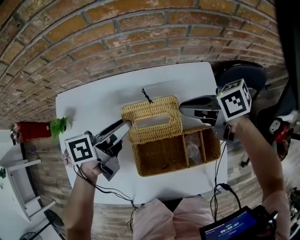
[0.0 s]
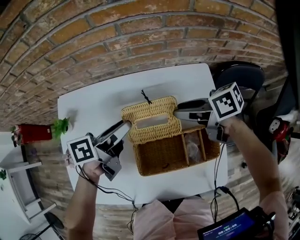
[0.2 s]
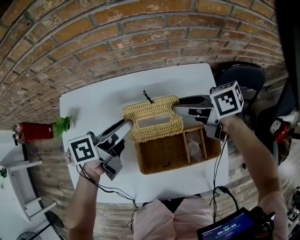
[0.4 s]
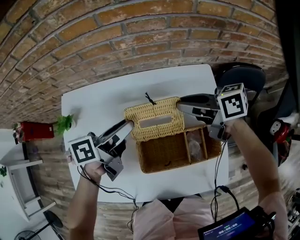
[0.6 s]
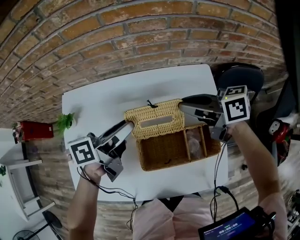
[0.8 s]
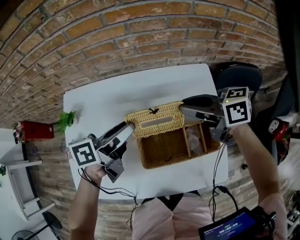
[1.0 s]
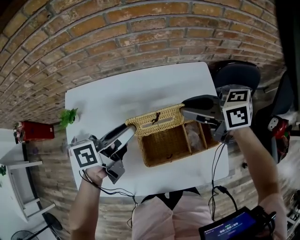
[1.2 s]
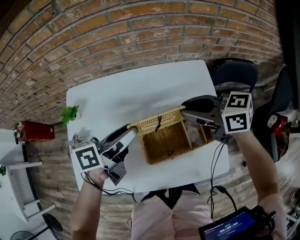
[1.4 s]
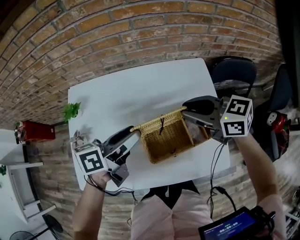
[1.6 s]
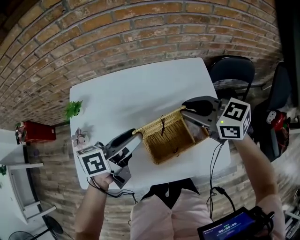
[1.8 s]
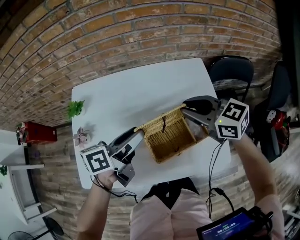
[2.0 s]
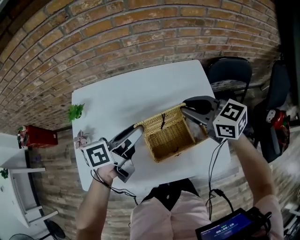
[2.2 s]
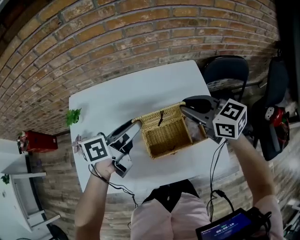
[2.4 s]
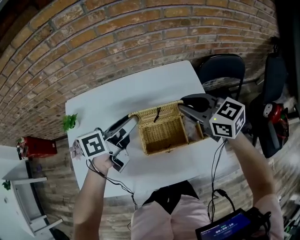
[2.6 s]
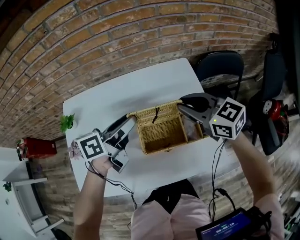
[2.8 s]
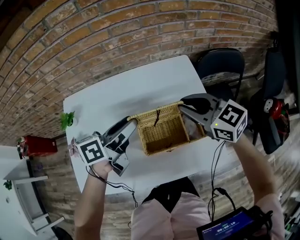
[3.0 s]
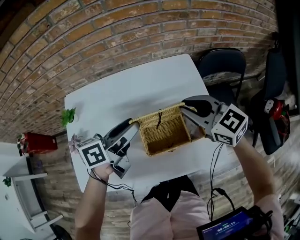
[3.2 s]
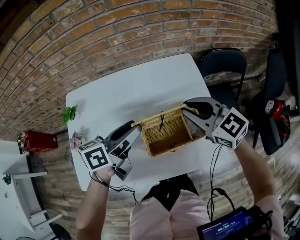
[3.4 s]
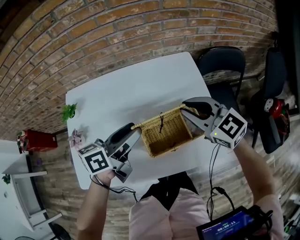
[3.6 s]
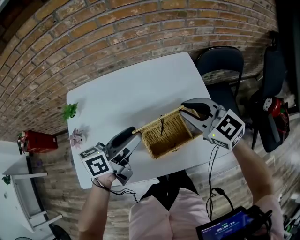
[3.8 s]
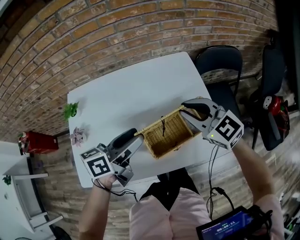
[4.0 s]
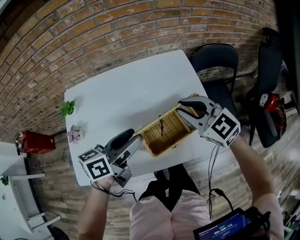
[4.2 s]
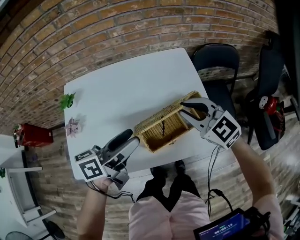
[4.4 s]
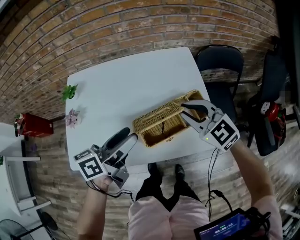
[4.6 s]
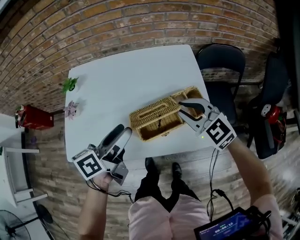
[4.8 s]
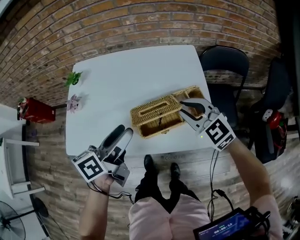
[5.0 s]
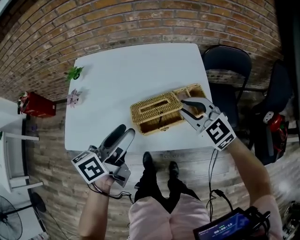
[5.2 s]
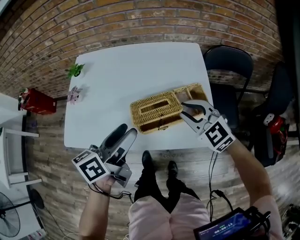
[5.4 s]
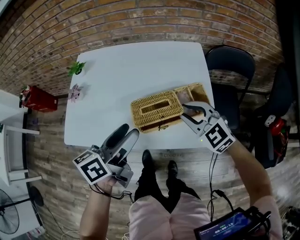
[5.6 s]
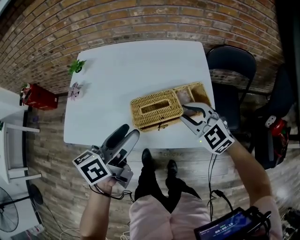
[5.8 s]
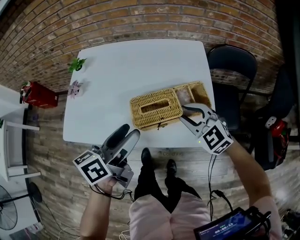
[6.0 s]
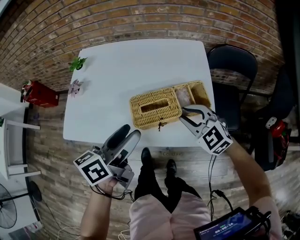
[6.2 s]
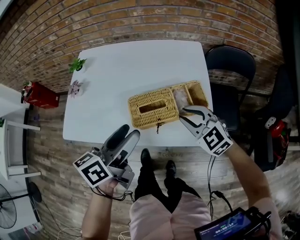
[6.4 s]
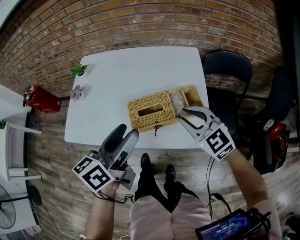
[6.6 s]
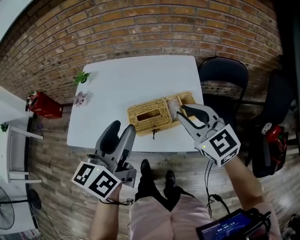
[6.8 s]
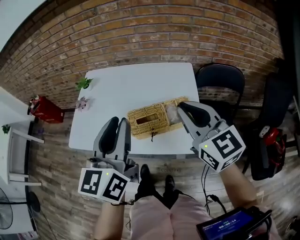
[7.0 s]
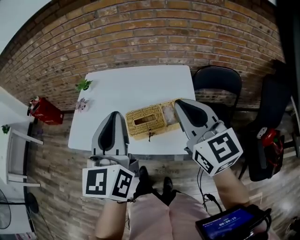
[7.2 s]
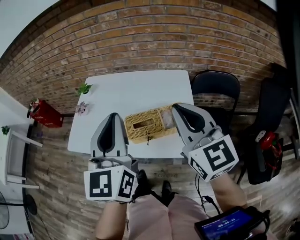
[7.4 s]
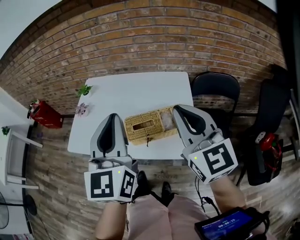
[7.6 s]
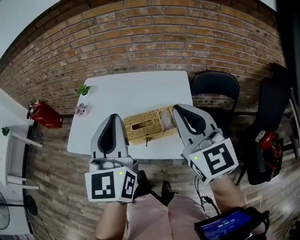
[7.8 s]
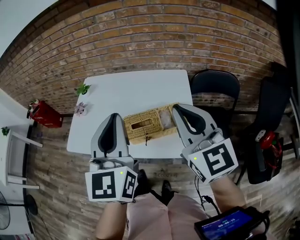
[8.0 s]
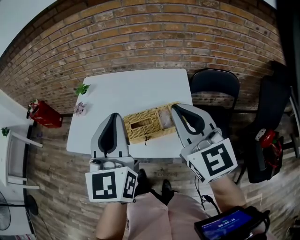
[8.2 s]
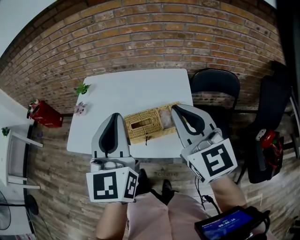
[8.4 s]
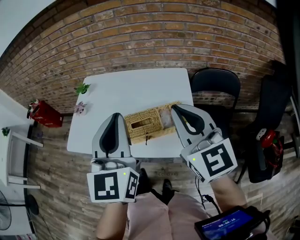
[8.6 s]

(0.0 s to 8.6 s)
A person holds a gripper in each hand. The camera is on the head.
0.0 s - 1.4 s: The right gripper moves about 10 cm, rotates approximately 30 degrees, and opens, then closes once more. The left gripper ends up approximately 10 cm from where it was.
1.4 s - 2.8 s: The right gripper ends up roughly 5 cm from where it was, and changes its angle by approximately 30 degrees.
2.8 s - 4.4 s: Both grippers travel together backward, approximately 15 cm. The right gripper swivels roughly 20 degrees.
4.4 s - 5.8 s: The left gripper heads backward, covering approximately 5 cm, and swivels approximately 20 degrees. Meanwhile the right gripper shifts approximately 10 cm downward and backward.
5.8 s - 7.2 s: The grippers both shift upward by roughly 20 cm. The right gripper rotates some 40 degrees, and closes its fingers. The left gripper changes its angle by about 50 degrees, and closes.
7.2 s - 8.6 s: The grippers move only a little.

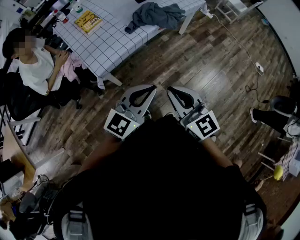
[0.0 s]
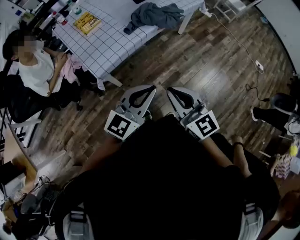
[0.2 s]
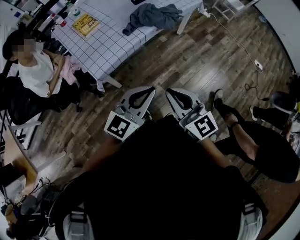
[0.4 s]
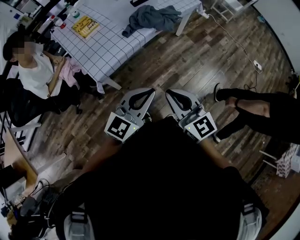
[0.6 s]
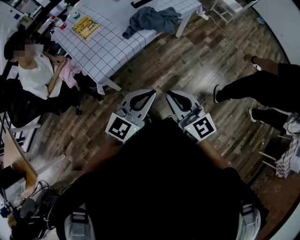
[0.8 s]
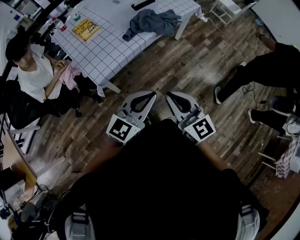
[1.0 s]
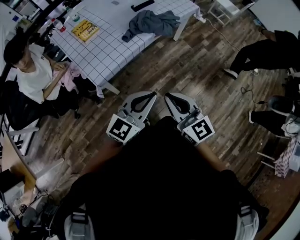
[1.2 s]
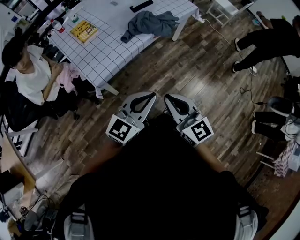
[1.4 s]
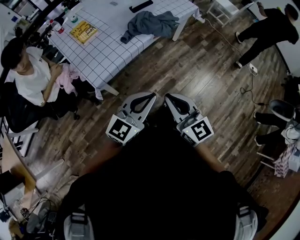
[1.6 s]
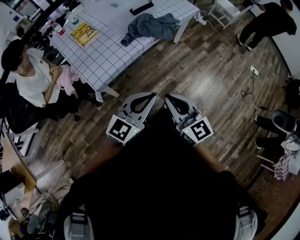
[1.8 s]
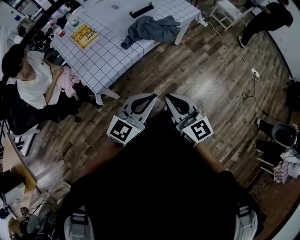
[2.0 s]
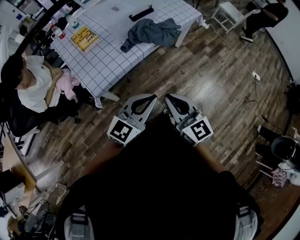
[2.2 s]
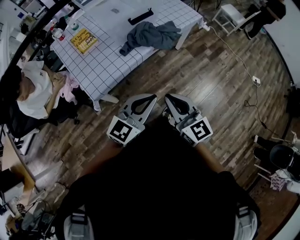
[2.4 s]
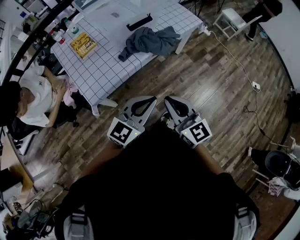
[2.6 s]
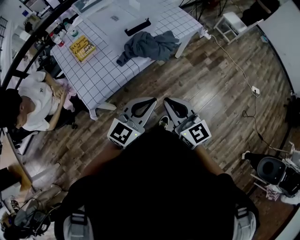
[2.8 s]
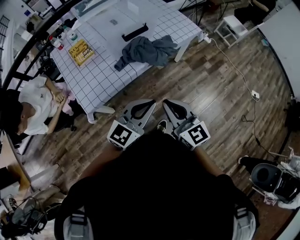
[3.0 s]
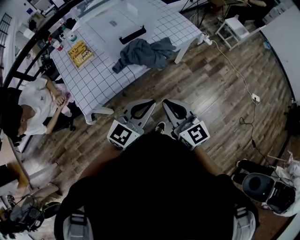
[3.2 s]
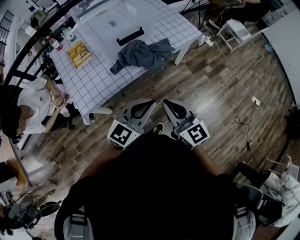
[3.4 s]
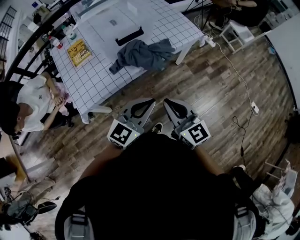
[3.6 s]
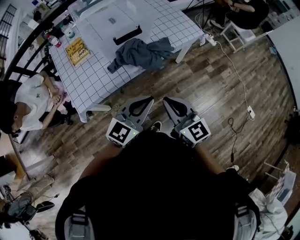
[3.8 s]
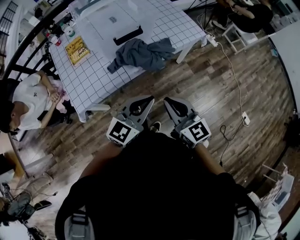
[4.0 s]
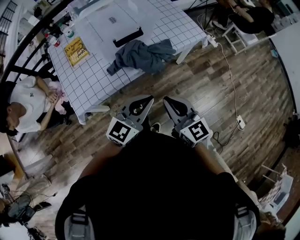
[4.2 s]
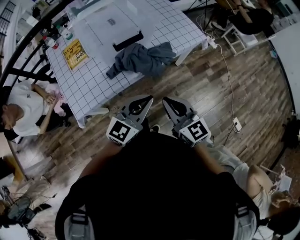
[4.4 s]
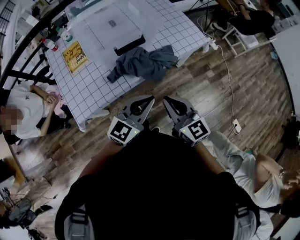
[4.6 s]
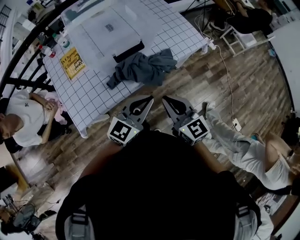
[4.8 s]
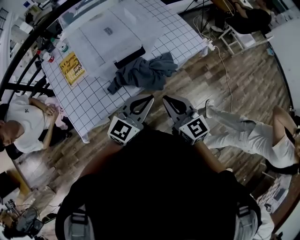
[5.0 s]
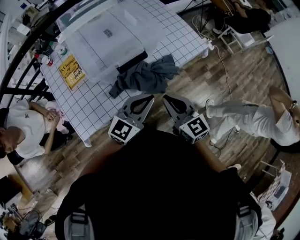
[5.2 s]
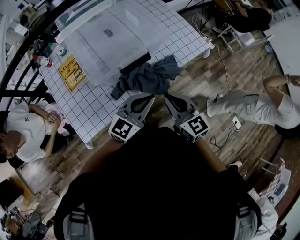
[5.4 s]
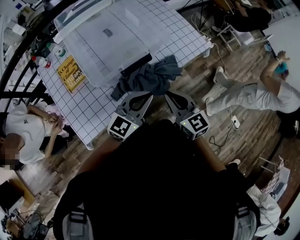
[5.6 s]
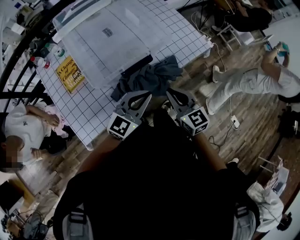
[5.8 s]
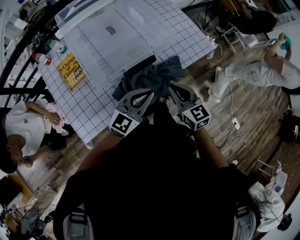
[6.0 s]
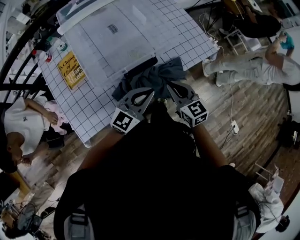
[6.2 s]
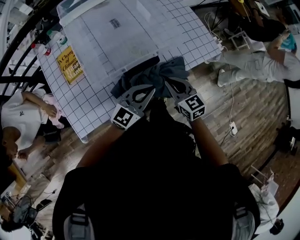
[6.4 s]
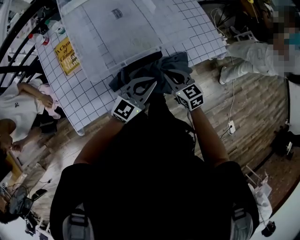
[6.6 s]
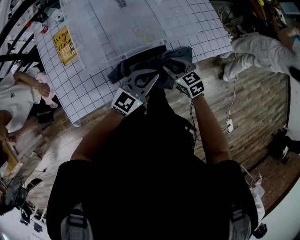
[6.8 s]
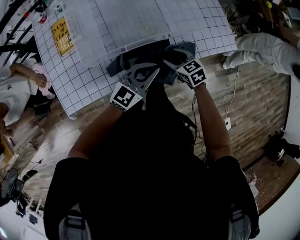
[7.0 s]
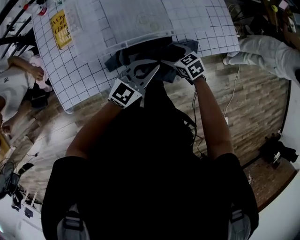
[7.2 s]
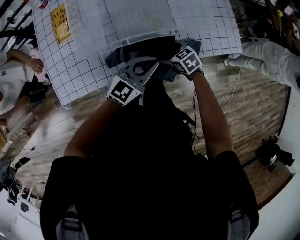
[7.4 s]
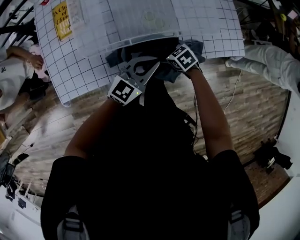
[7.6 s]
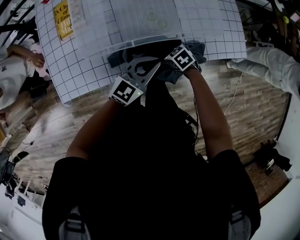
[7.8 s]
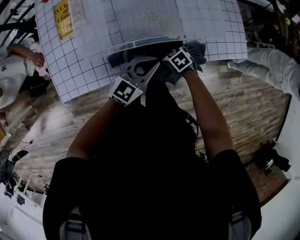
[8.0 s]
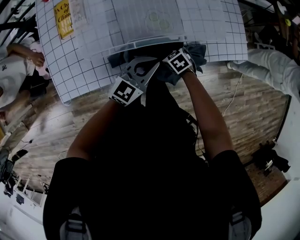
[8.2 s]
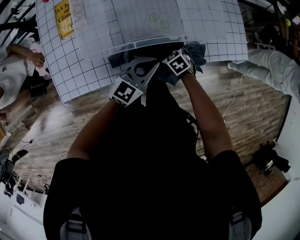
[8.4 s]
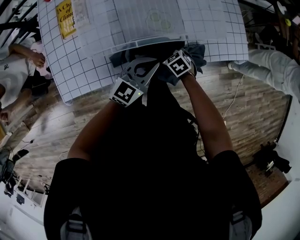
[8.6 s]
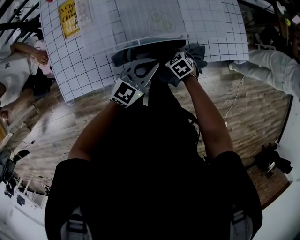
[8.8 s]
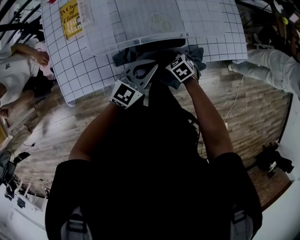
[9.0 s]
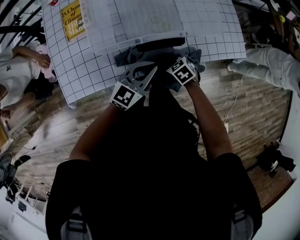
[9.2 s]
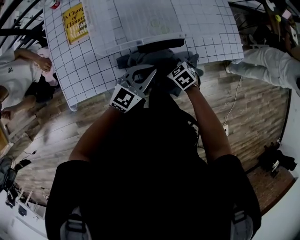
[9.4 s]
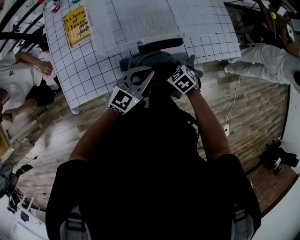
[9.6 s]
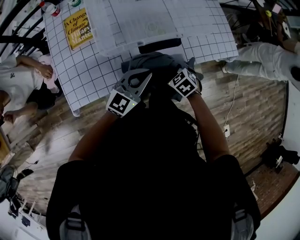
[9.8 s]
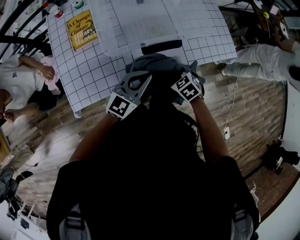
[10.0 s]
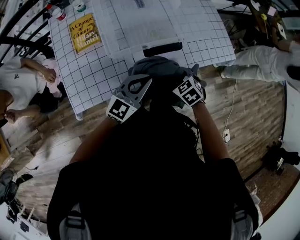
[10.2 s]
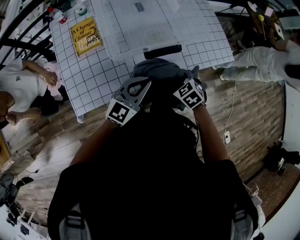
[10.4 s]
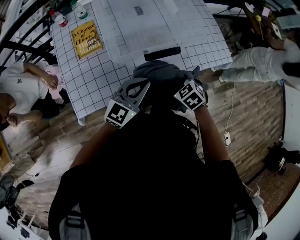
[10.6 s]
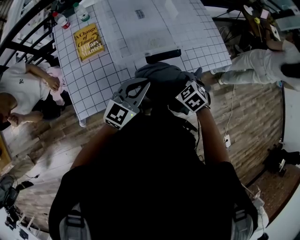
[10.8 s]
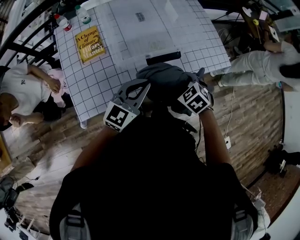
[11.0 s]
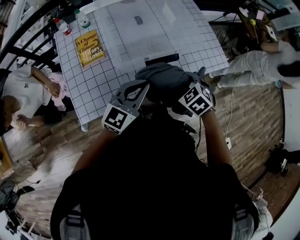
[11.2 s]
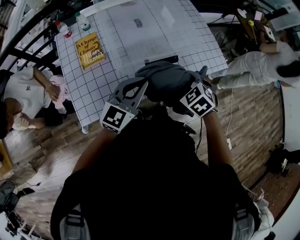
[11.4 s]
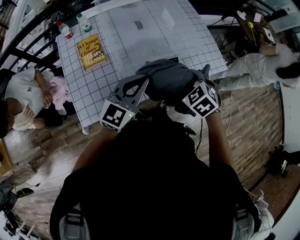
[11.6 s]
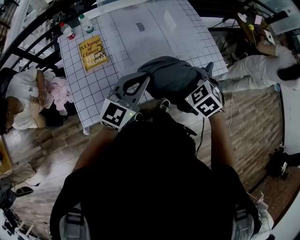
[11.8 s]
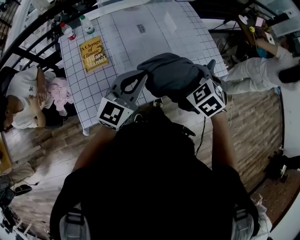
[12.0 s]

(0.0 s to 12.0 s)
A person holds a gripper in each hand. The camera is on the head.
0.0 s - 1.6 s: The grippers move only a little.
1.6 s - 3.0 s: Both grippers travel together forward and to the right, some 20 cm.
3.0 s - 4.4 s: Both grippers move forward and to the right, approximately 15 cm.
4.4 s - 6.0 s: The left gripper travels forward and to the left by some 20 cm. Meanwhile the right gripper travels forward by some 20 cm.
6.0 s - 7.6 s: The left gripper is displaced downward by approximately 15 cm. Meanwhile the right gripper heads downward, covering roughly 25 cm, tips its fingers downward by about 40 degrees, and opens up.
7.6 s - 9.0 s: The grippers make only small movements.
9.0 s - 10.4 s: The left gripper heads upward, to the left and backward, covering roughly 15 cm; the right gripper goes roughly 15 cm upward and backward.
10.4 s - 12.0 s: Both grippers travel together upward, roughly 15 cm.

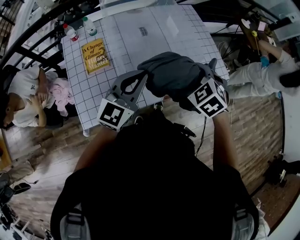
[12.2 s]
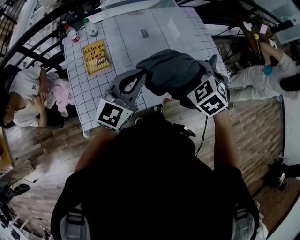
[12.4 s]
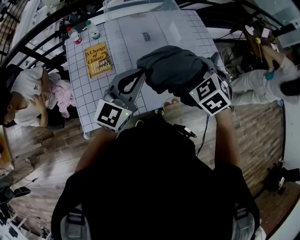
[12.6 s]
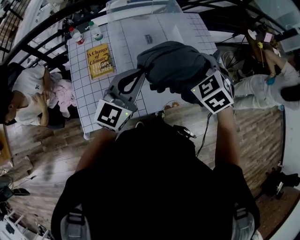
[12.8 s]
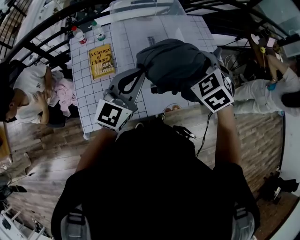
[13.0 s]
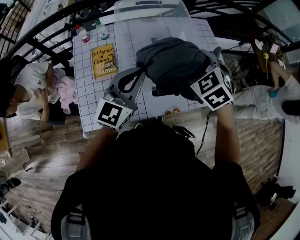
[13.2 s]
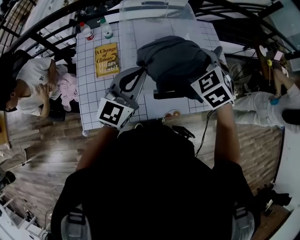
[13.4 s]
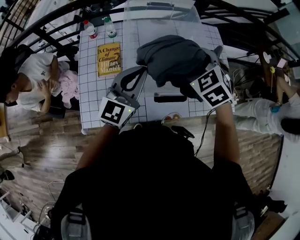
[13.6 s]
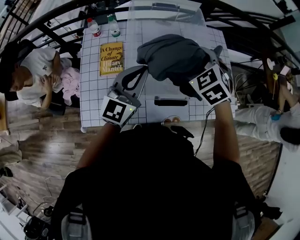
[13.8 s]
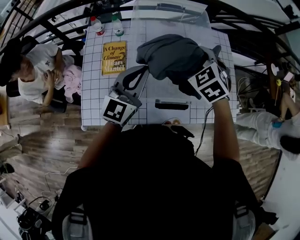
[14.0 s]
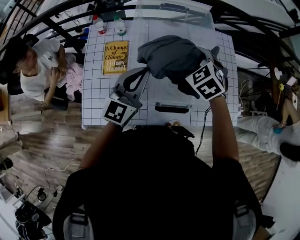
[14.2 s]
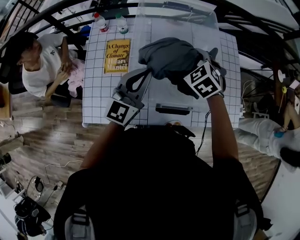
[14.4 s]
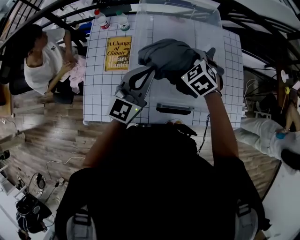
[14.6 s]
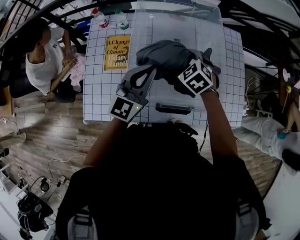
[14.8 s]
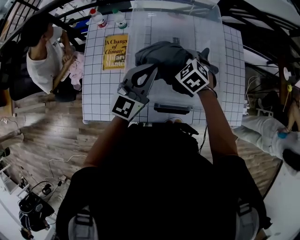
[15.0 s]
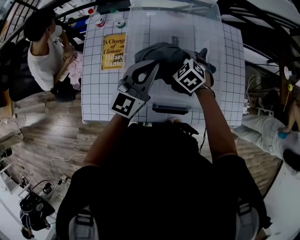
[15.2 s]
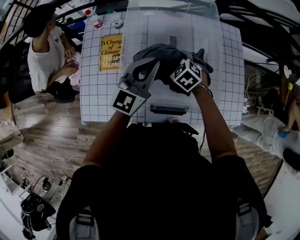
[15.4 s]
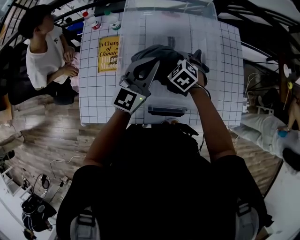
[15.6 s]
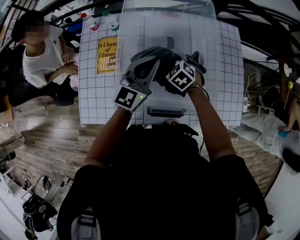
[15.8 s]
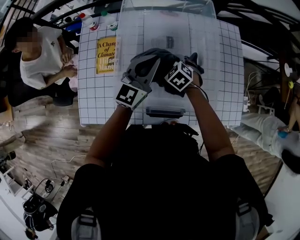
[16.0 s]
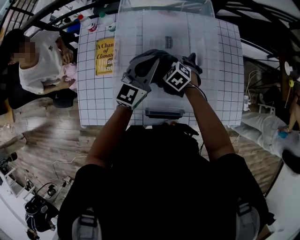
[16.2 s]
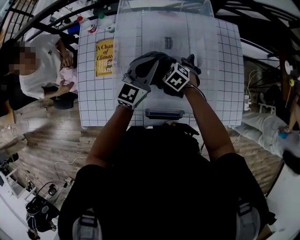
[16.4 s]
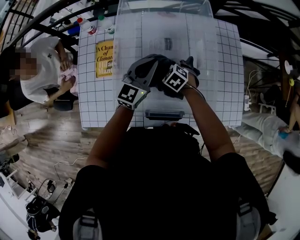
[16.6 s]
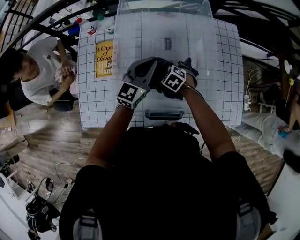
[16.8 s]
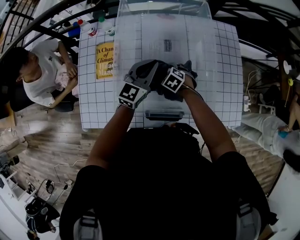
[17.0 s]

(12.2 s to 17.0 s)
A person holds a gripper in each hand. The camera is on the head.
12.2 s - 13.8 s: The right gripper travels forward by roughly 20 cm, while the left gripper moves forward, some 10 cm.
13.8 s - 15.4 s: The left gripper heads forward, to the right and downward, covering roughly 10 cm. The right gripper moves downward, approximately 20 cm.
15.4 s - 17.0 s: The two grippers go approximately 10 cm downward.
